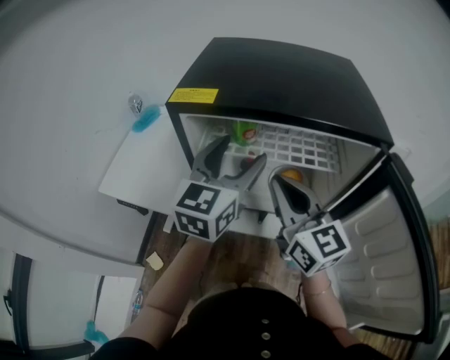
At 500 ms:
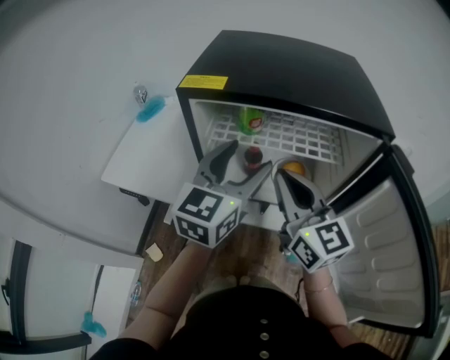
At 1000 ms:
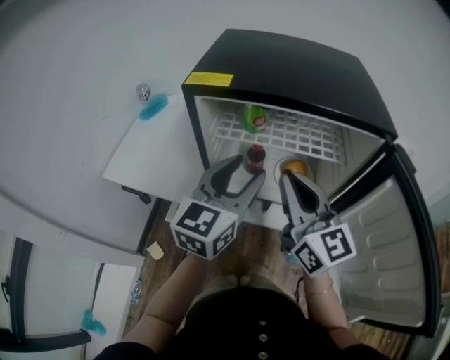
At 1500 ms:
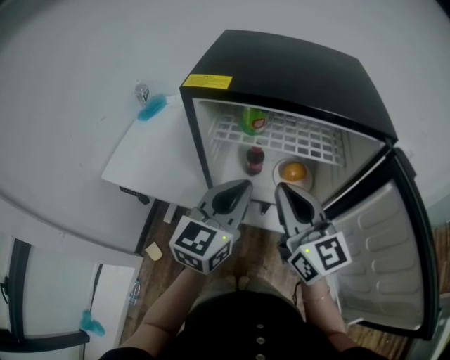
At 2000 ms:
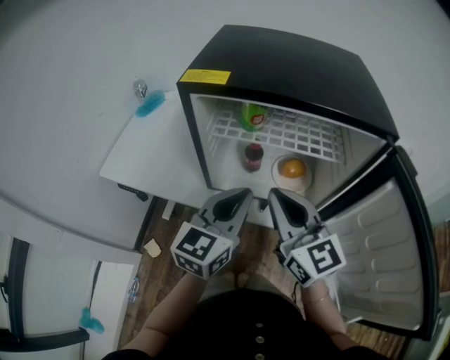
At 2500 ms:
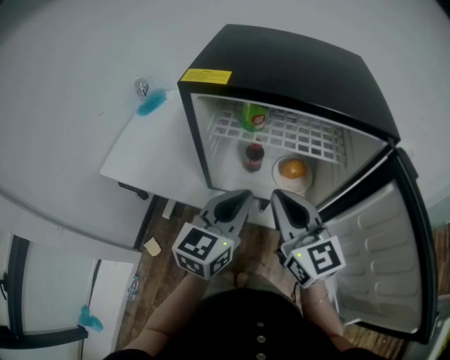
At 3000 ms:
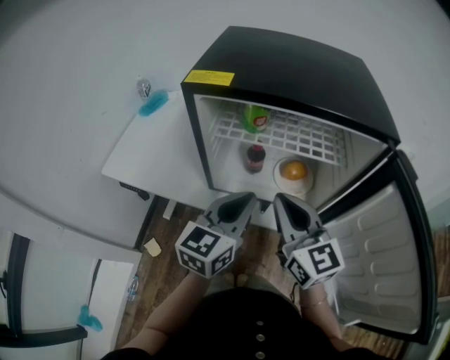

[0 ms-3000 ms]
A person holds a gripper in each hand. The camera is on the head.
0 ms to 1500 ms: The left gripper goes approximately 10 cm backward and downward, and closes its fingers.
1500 ms to 3000 ms: The grippers make only small movements.

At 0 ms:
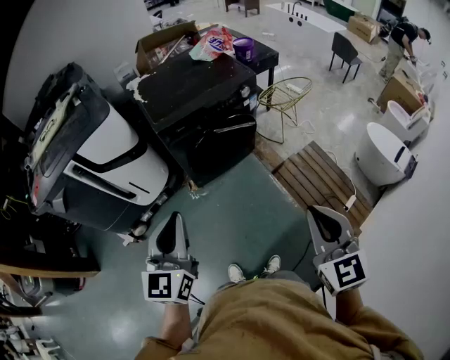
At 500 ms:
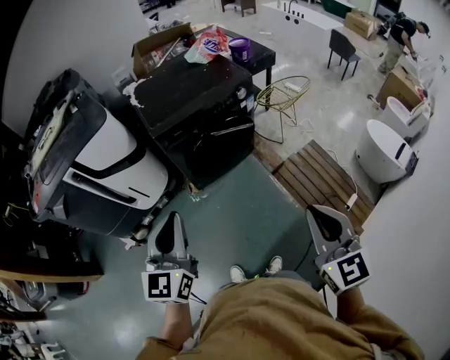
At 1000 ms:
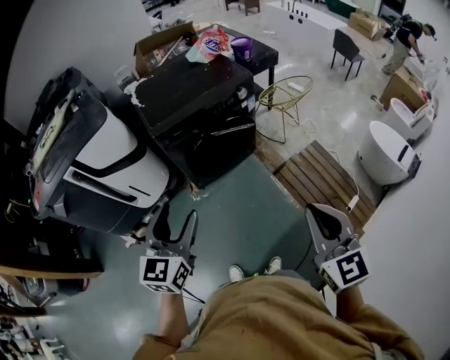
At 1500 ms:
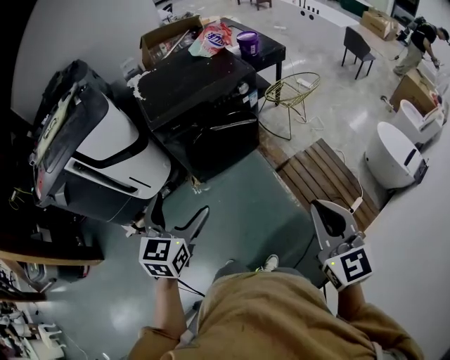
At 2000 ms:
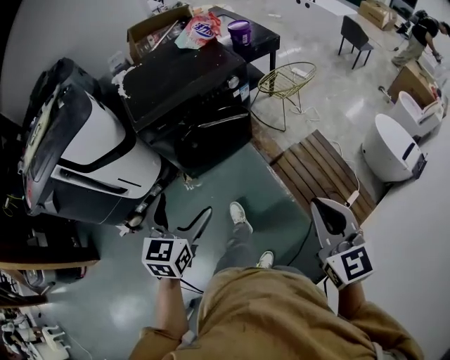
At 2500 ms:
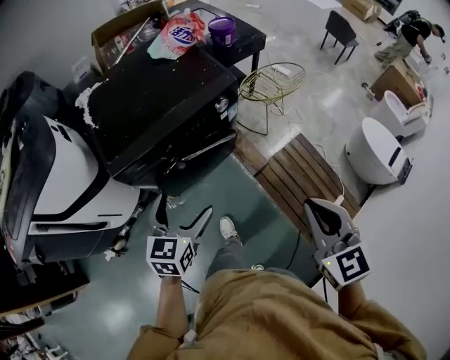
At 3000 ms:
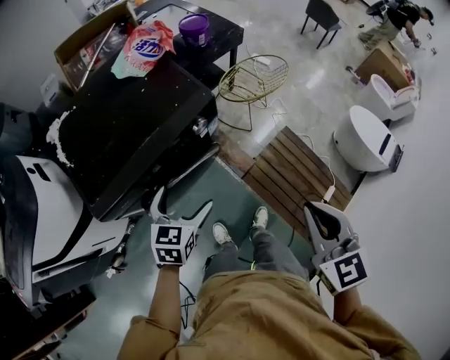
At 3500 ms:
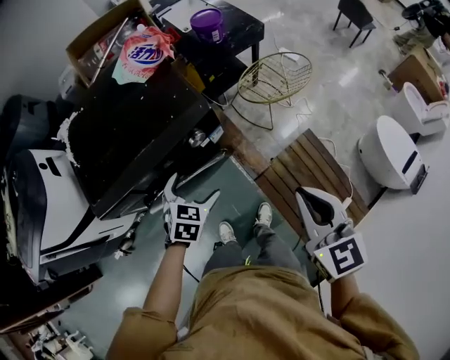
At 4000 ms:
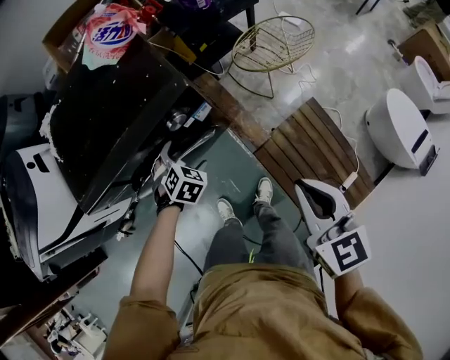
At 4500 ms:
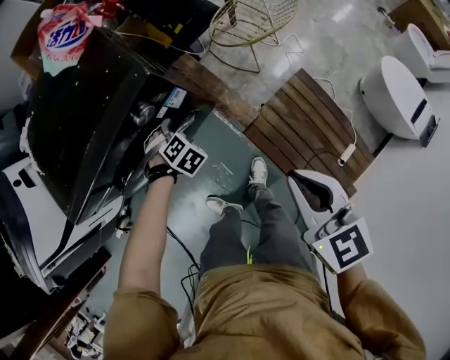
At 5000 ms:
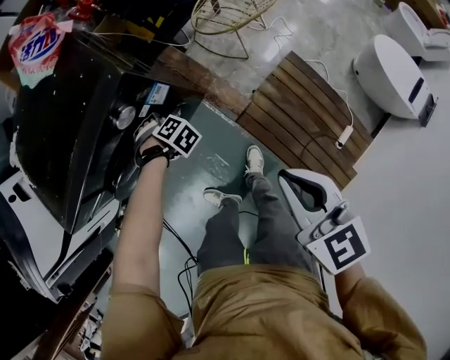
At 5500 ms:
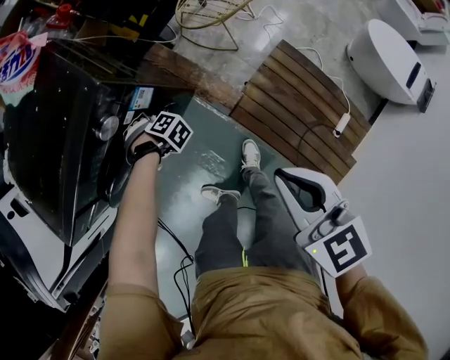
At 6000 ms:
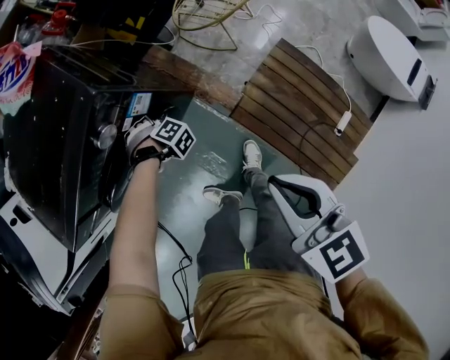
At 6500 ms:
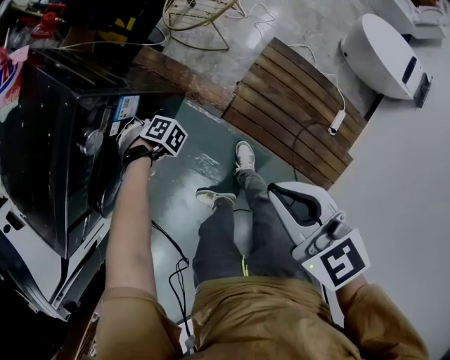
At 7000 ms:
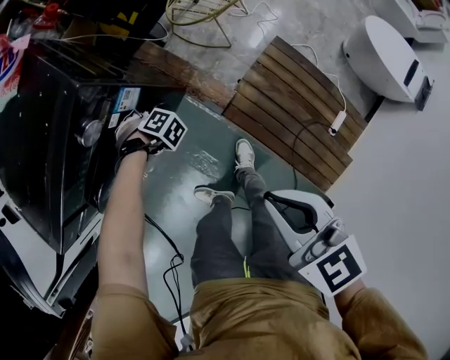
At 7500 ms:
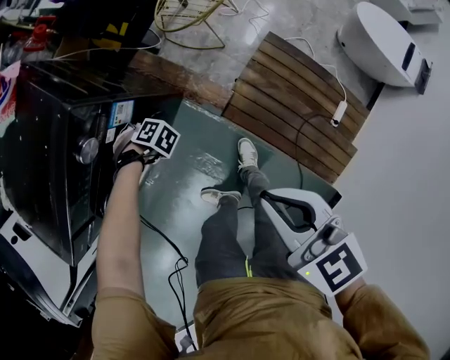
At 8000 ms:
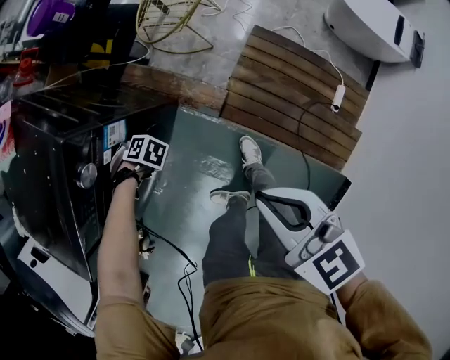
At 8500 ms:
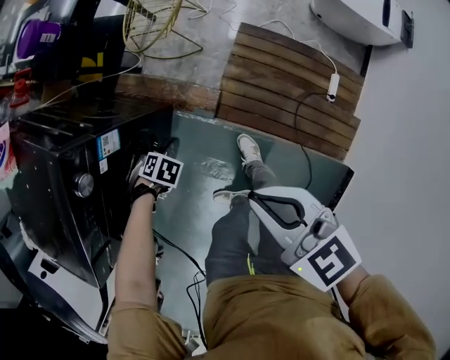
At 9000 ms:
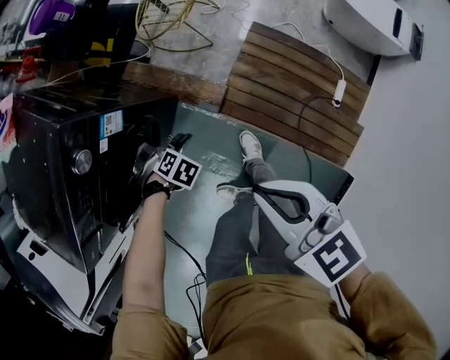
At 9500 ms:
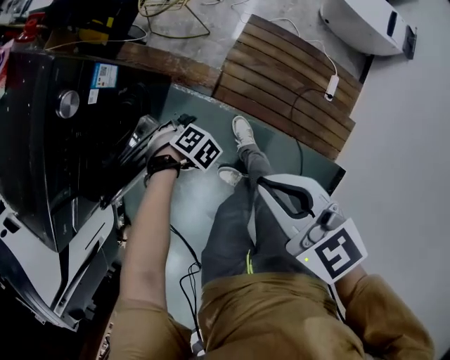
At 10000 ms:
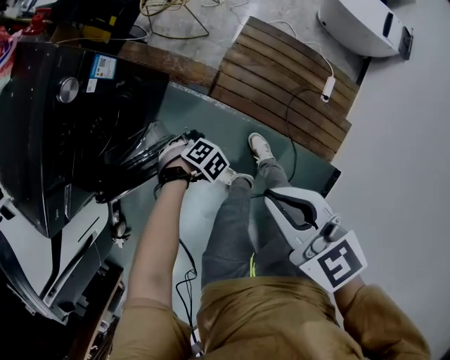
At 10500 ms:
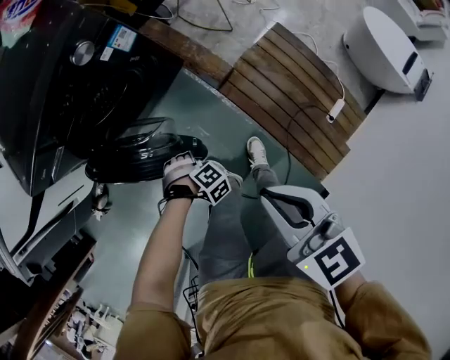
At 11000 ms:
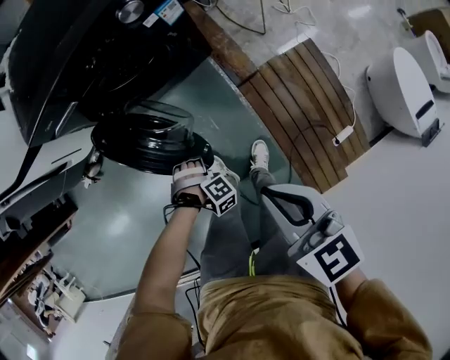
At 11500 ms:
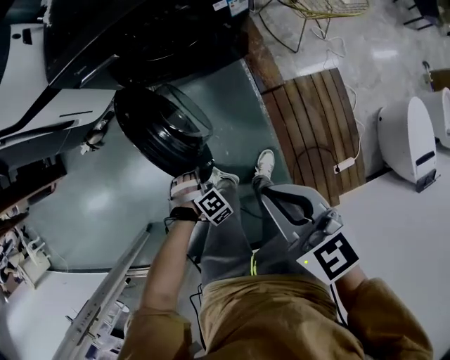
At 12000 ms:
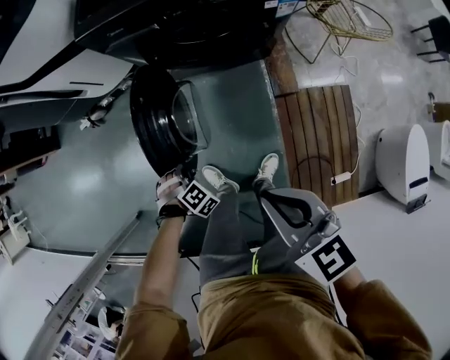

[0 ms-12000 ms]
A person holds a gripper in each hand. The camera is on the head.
0 ms to 2000 ms: The left gripper travels to the right, downward and forward by about 20 cm, swivels roughly 20 degrees, and opens up. The right gripper travels to the right and forward by approximately 15 cm.
2000 ms to 4000 ms: The pair of grippers is taken forward, roughly 50 cm. The left gripper heads downward, covering some 25 cm, and angles its fingers downward, by some 40 degrees.
4000 ms to 6000 ms: The right gripper is displaced downward by approximately 10 cm. The left gripper travels downward by approximately 20 cm, turns by approximately 50 degrees, and closes its fingers.
6000 ms to 8000 ms: The grippers move only a little.
8000 ms to 10000 ms: The right gripper moves approximately 20 cm. Meanwhile the left gripper changes place by some 30 cm, and turns by roughly 20 degrees.
10000 ms to 12000 ms: The left gripper shifts by some 30 cm, and twists about 50 degrees counterclockwise, seen from behind, while the right gripper shifts by roughly 15 cm, and turns by approximately 50 degrees.

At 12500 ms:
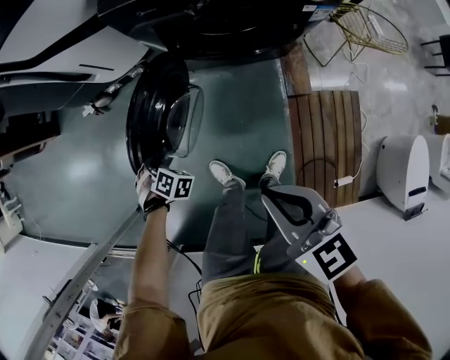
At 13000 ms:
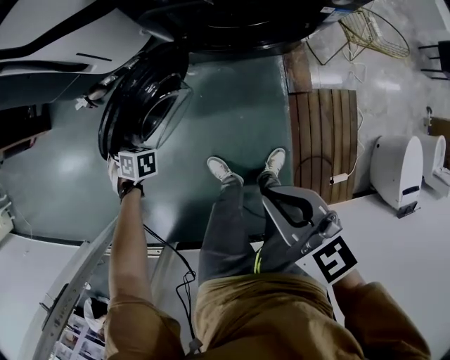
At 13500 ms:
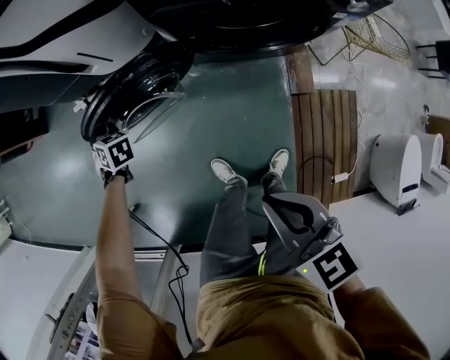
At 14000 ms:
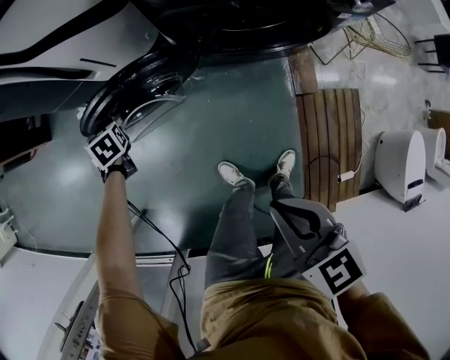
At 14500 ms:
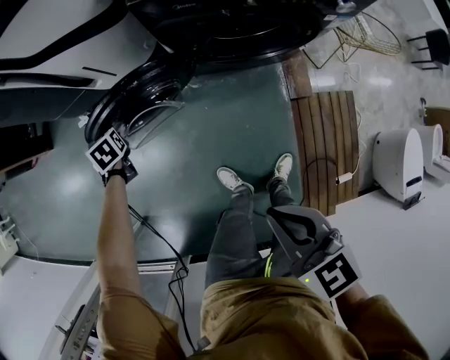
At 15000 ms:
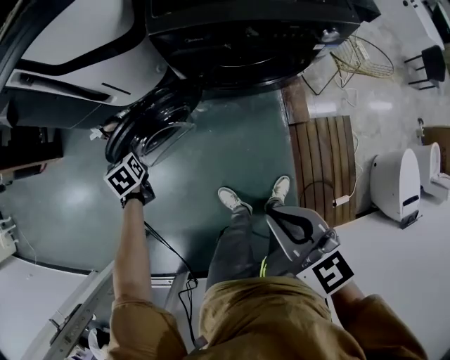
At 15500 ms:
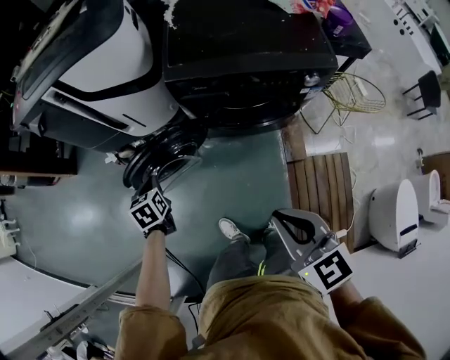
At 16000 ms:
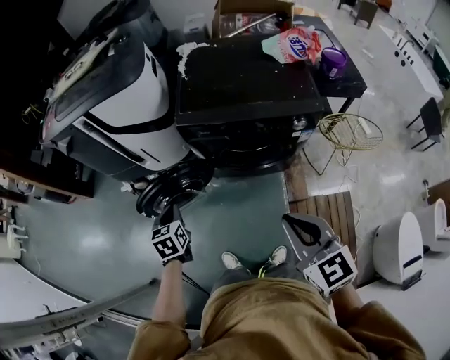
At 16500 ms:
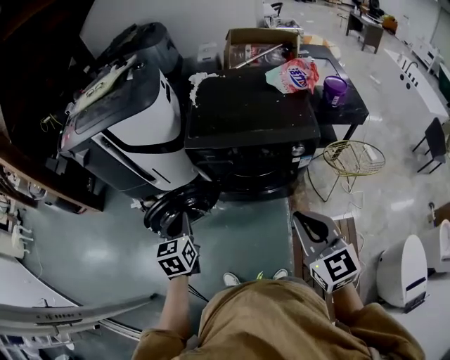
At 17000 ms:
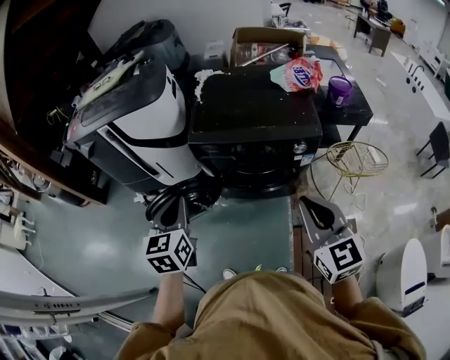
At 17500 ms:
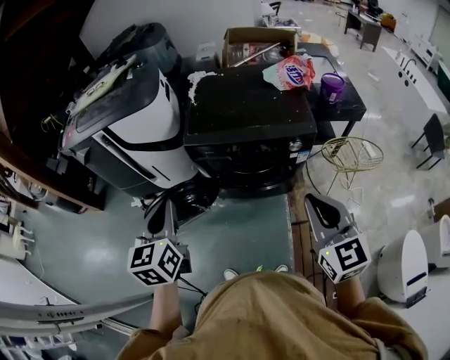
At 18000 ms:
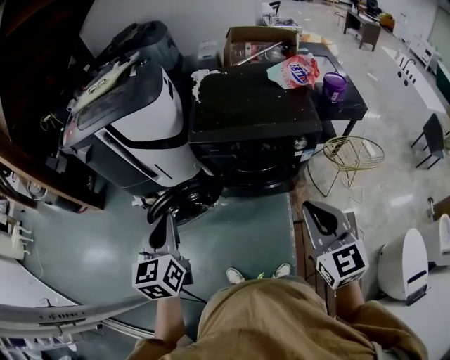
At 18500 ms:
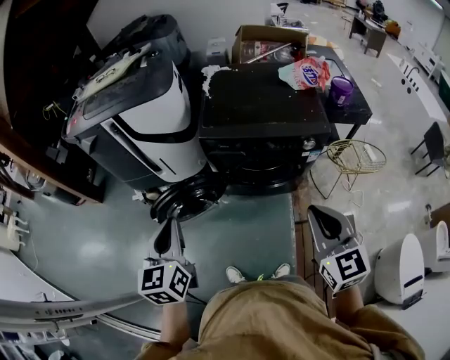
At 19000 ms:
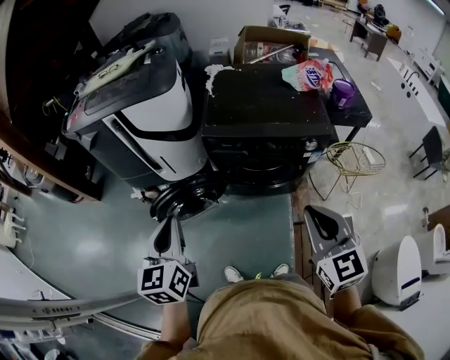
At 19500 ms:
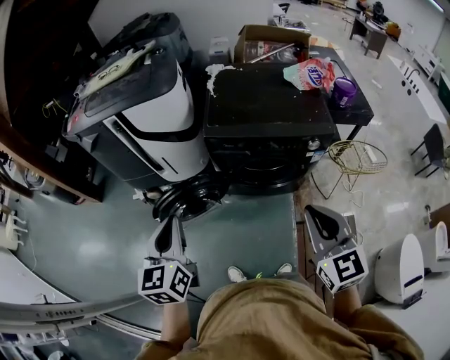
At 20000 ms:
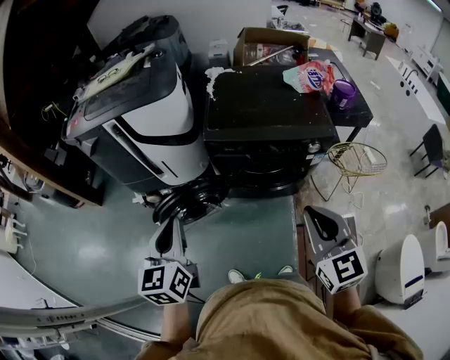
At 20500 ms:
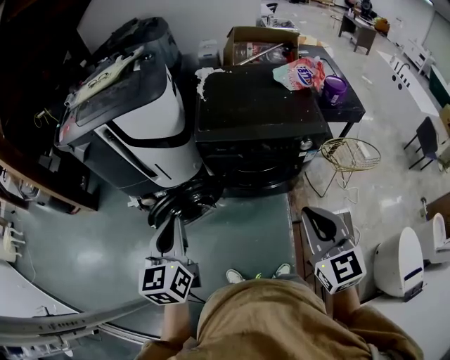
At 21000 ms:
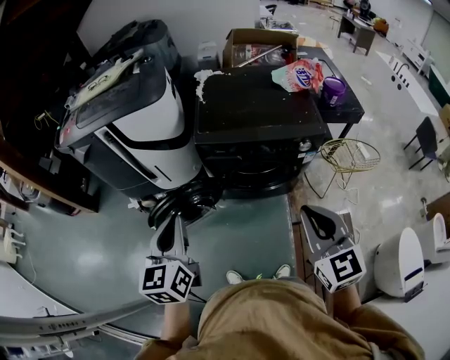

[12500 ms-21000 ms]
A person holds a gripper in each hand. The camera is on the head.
12500 ms to 14500 ms: The left gripper shifts some 25 cm forward, and rolls counterclockwise, seen from behind, by about 50 degrees. Meanwhile the right gripper travels to the left and forward by roughly 10 cm.
14500 ms to 16500 ms: The right gripper is displaced to the right and upward by approximately 30 cm, and rotates roughly 30 degrees. Meanwhile the left gripper shifts roughly 40 cm upward, to the right and backward, and swivels approximately 30 degrees.
16500 ms to 19000 ms: The left gripper is displaced upward, to the left and backward by about 15 cm. The right gripper goes approximately 5 cm to the left.
19000 ms to 21000 ms: There are only small adjustments of the grippers.

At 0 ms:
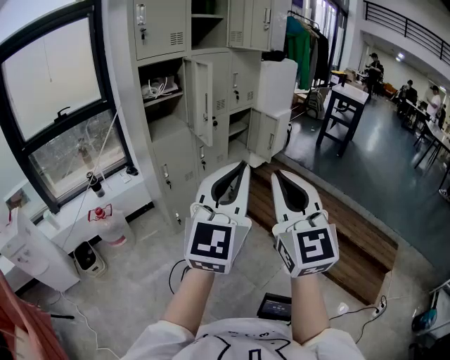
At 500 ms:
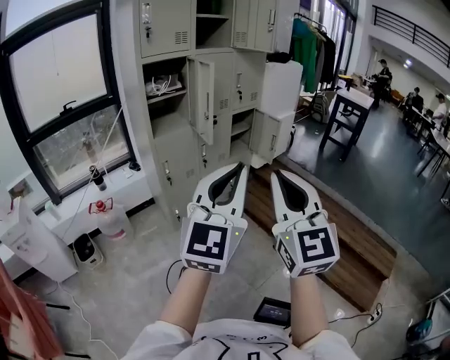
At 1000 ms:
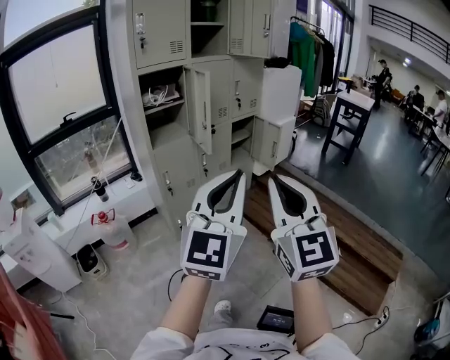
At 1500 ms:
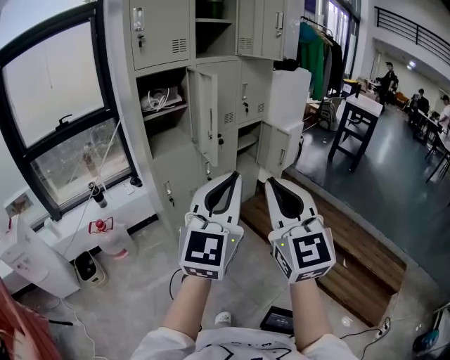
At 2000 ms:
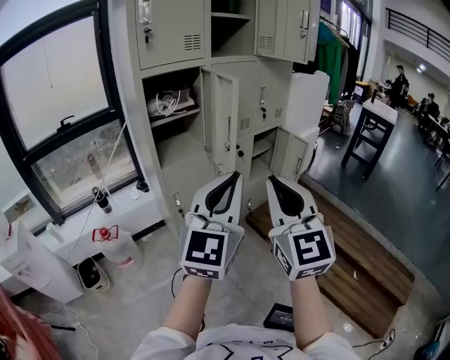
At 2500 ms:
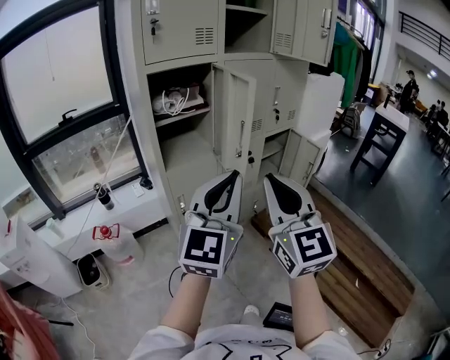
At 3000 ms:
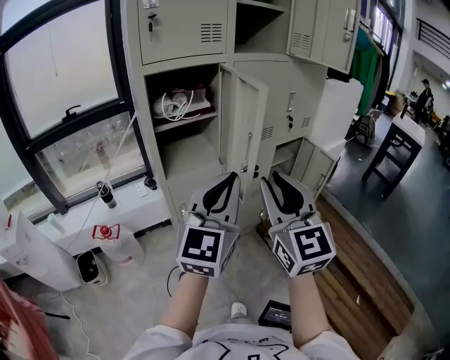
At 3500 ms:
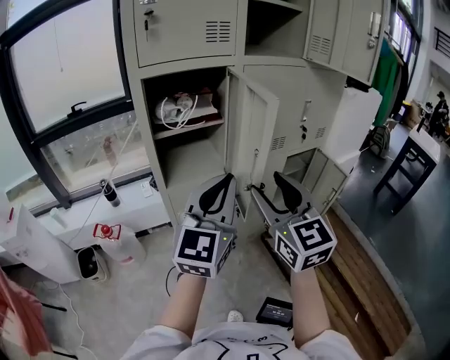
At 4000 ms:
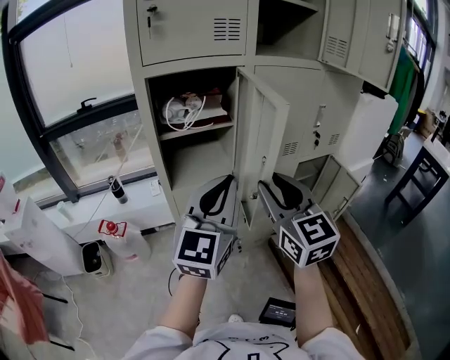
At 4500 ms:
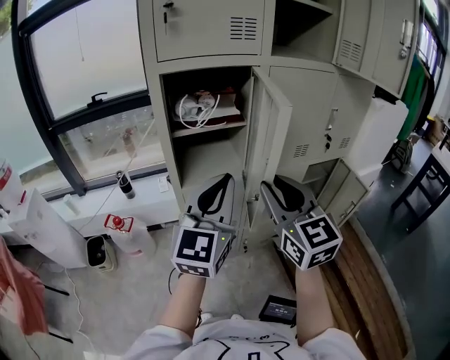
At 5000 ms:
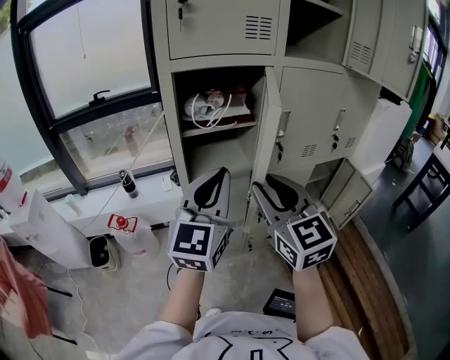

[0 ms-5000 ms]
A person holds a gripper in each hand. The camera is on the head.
0 ms to 2500 ms: Both grippers move forward, roughly 30 cm.
2500 ms to 5000 ms: The grippers both shift forward by some 20 cm. The right gripper turns by approximately 20 degrees, and opens up.
